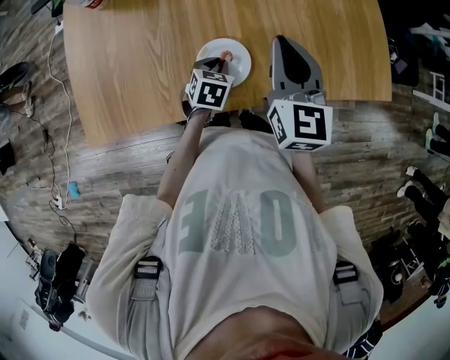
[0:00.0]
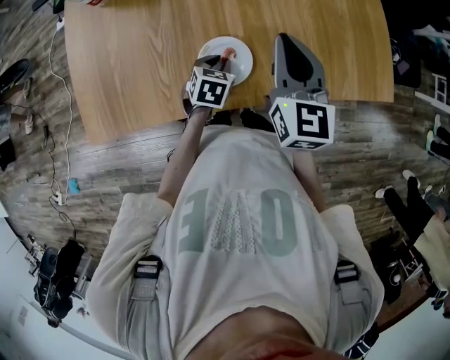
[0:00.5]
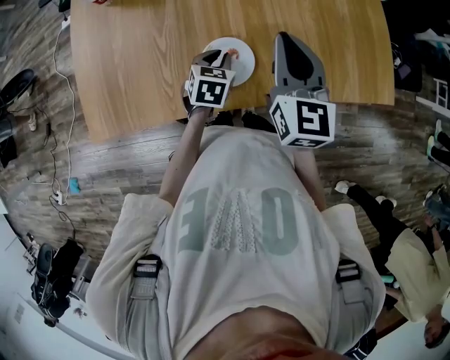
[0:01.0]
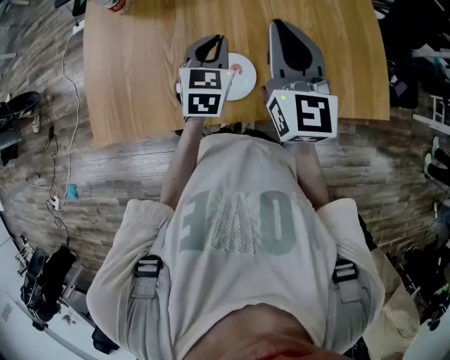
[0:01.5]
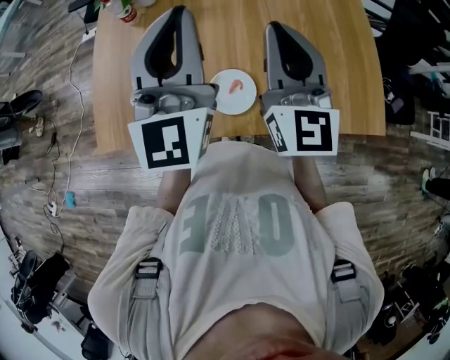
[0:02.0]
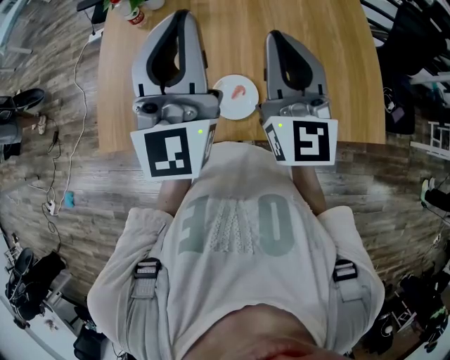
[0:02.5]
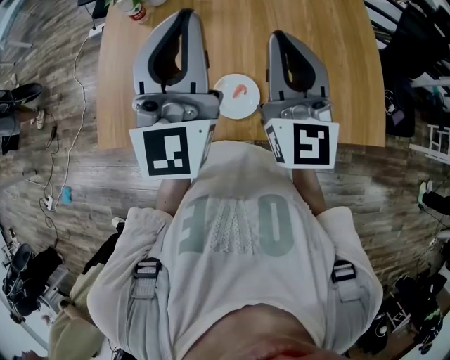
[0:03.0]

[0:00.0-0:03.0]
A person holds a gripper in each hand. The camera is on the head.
0:00.0 to 0:01.5: The left gripper heads upward, covering about 15 cm, and changes its angle by roughly 30 degrees, while the right gripper is displaced upward by approximately 5 cm.
0:01.5 to 0:03.0: The left gripper shifts approximately 25 cm upward, and tips its fingers upward by some 50 degrees. Meanwhile the right gripper heads upward, covering approximately 5 cm.

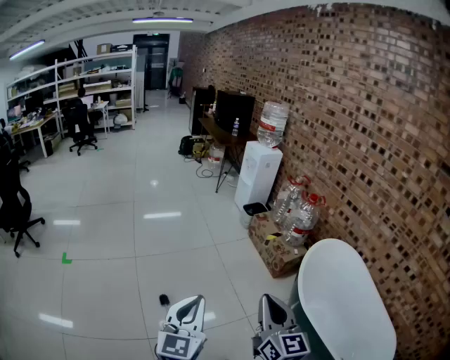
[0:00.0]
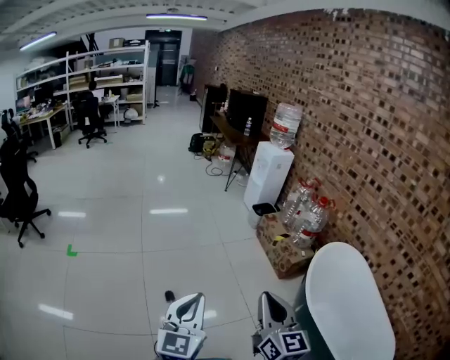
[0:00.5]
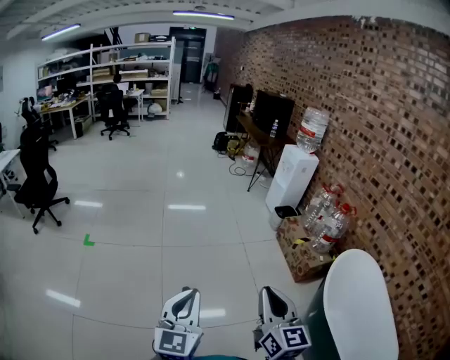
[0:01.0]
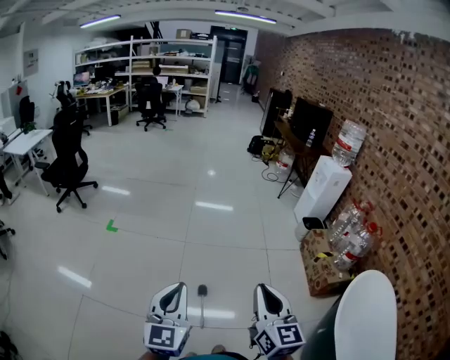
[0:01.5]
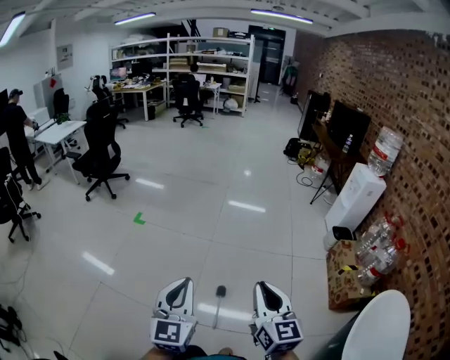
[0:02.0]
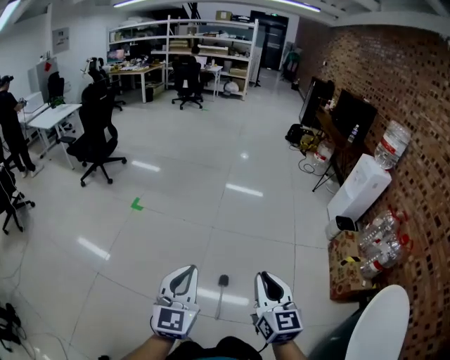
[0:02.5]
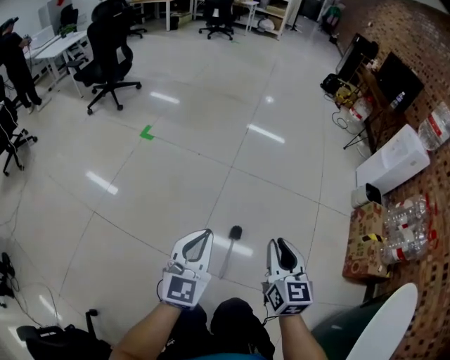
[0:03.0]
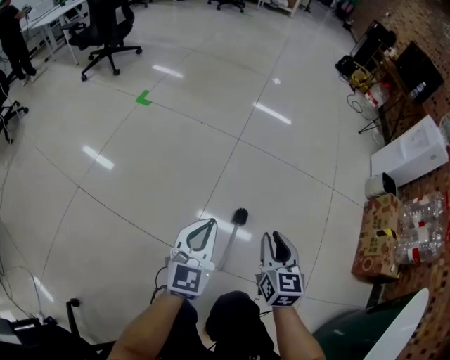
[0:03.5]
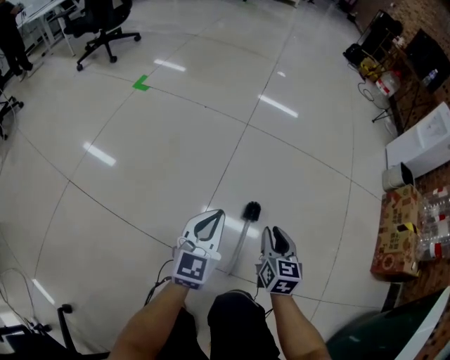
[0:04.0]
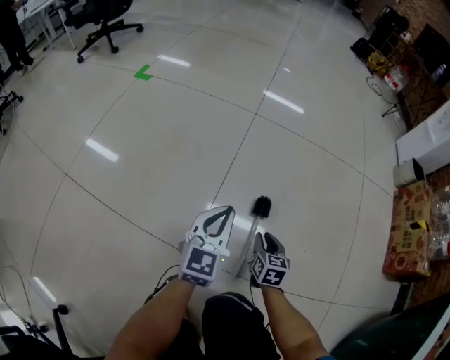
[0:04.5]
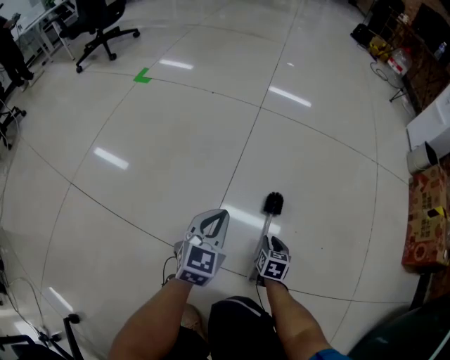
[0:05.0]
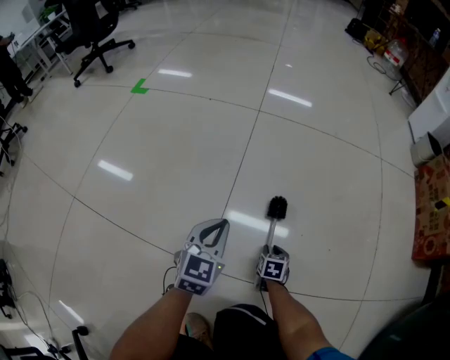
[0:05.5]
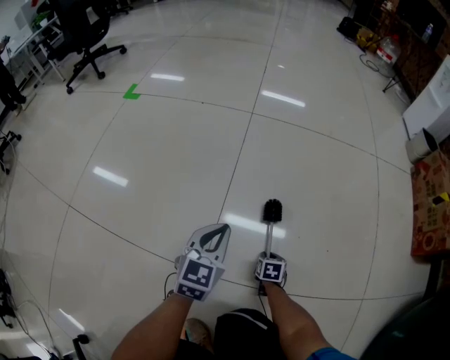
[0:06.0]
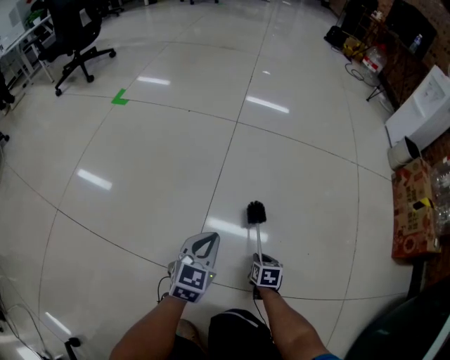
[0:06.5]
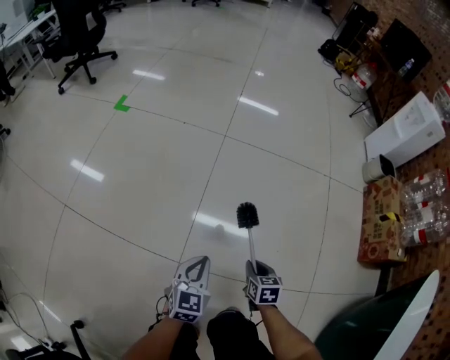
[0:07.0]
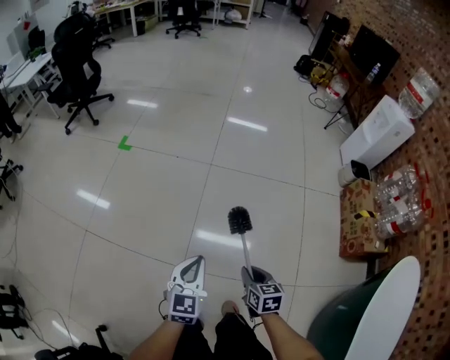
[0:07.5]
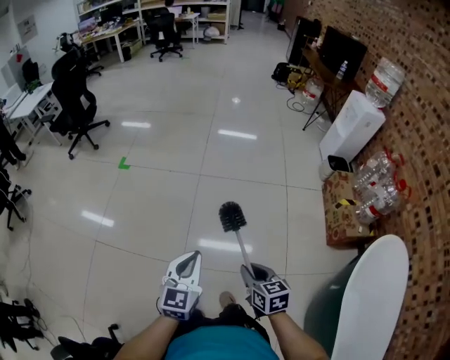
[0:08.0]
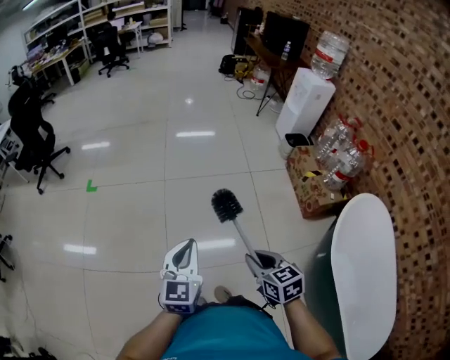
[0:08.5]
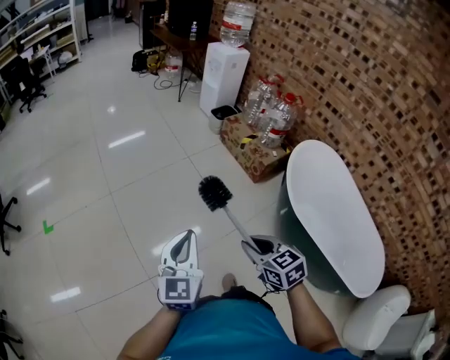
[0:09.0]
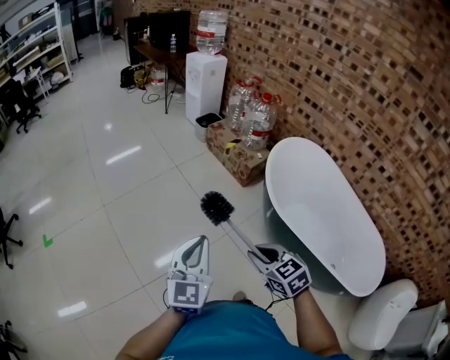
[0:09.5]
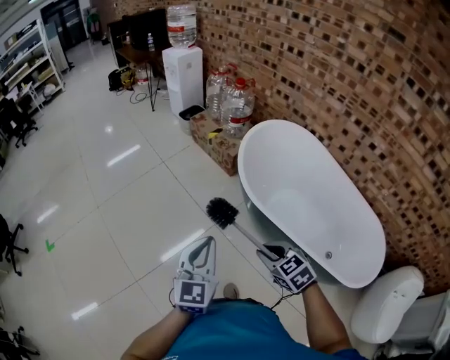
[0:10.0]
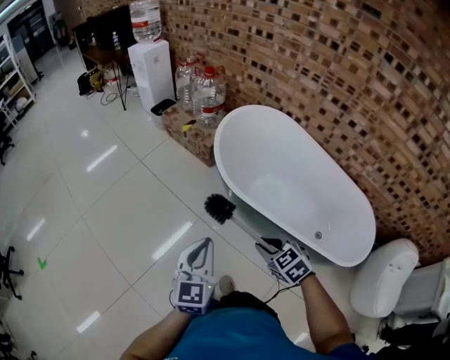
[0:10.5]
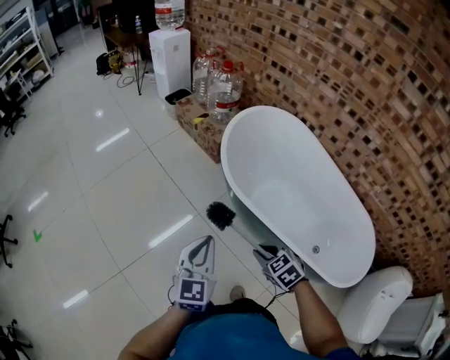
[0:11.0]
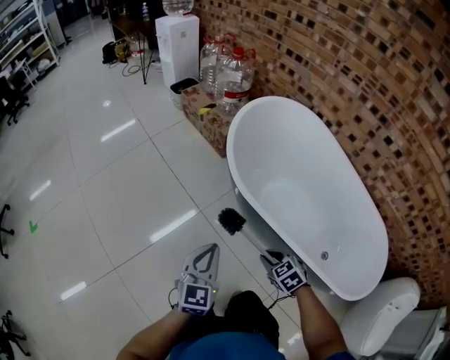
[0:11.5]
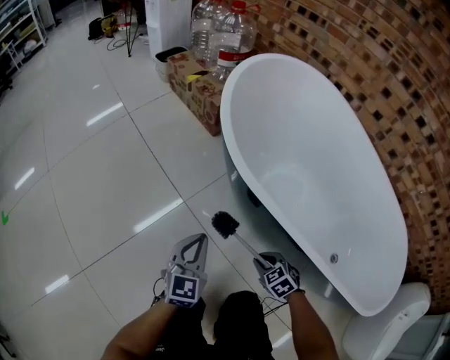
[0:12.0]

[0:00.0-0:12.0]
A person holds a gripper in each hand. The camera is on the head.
0:00.0 to 0:02.0: The right gripper moves approximately 30 cm, and turns by roughly 30 degrees, while the left gripper ends up about 30 cm from where it was, and turns by approximately 40 degrees.
0:02.0 to 0:04.0: Both grippers move downward, some 80 cm. The right gripper swivels roughly 30 degrees.
0:04.0 to 0:06.0: The right gripper heads downward, covering some 40 cm, and tips its fingers downward by roughly 40 degrees, while the left gripper is displaced downward by about 15 cm.
0:06.0 to 0:08.0: The two grippers go roughly 80 cm upward. The right gripper turns by roughly 30 degrees.
0:08.0 to 0:10.0: Both grippers are carried about 50 cm. The left gripper changes its angle by roughly 50 degrees; the right gripper changes its angle by approximately 30 degrees.
0:10.0 to 0:12.0: The grippers both shift downward by some 50 cm.

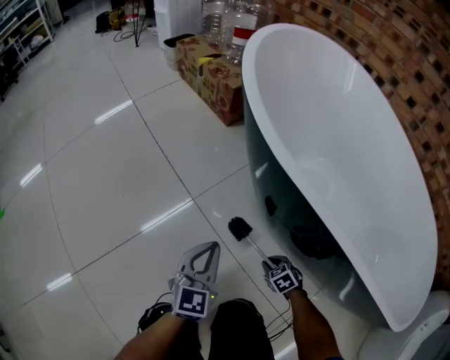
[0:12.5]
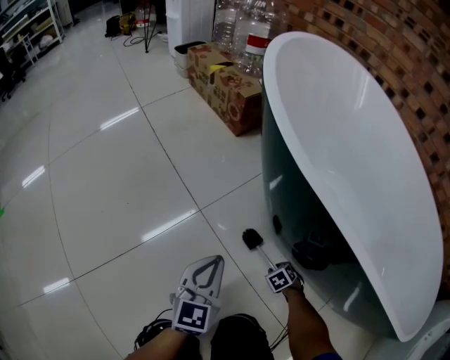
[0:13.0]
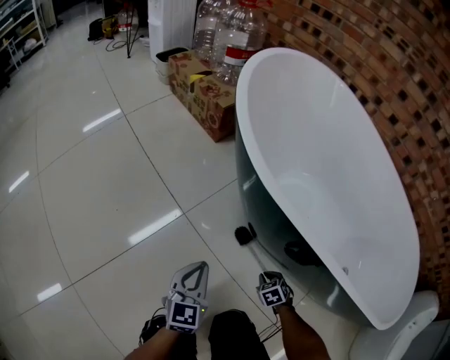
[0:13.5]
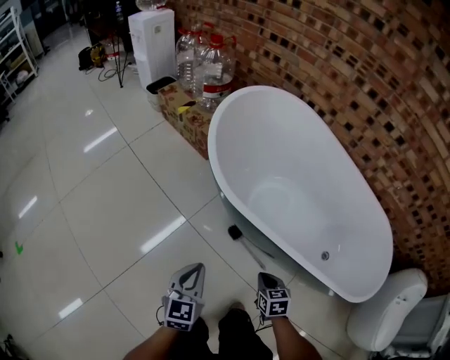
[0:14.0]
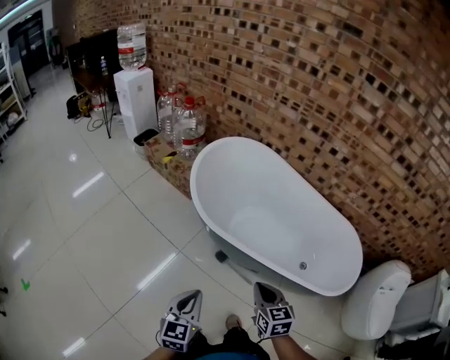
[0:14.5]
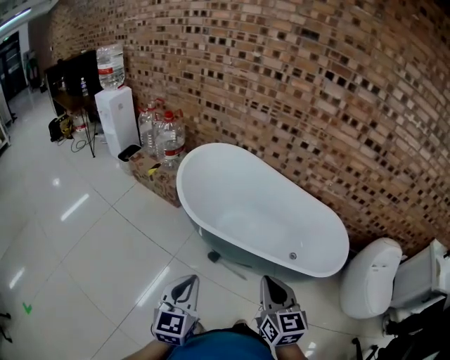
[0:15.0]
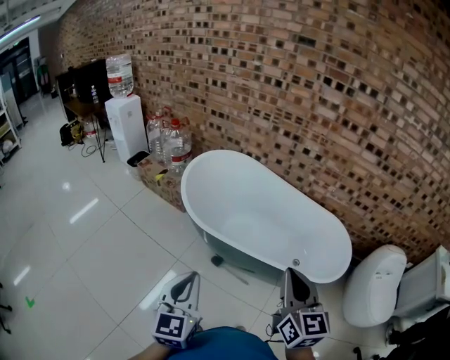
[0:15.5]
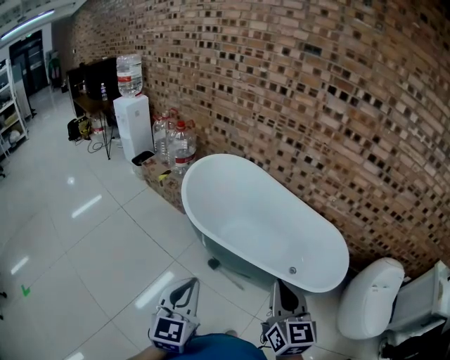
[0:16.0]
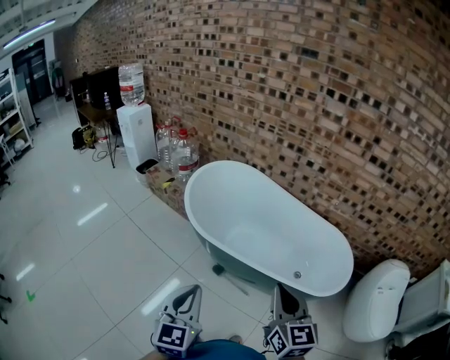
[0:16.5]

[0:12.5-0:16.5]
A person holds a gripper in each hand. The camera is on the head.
0:12.5 to 0:14.5: The two grippers go some 60 cm upward. The right gripper angles its fingers upward, by about 40 degrees.
0:14.5 to 0:16.5: Both grippers travel together upward, backward and to the right, about 25 cm. The right gripper changes its angle by approximately 30 degrees.

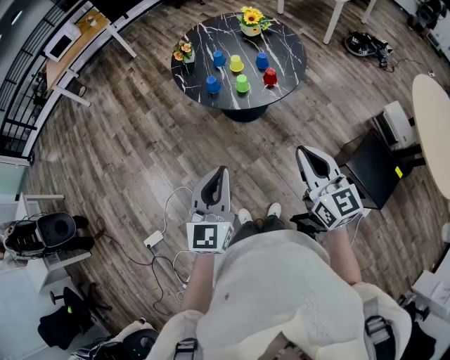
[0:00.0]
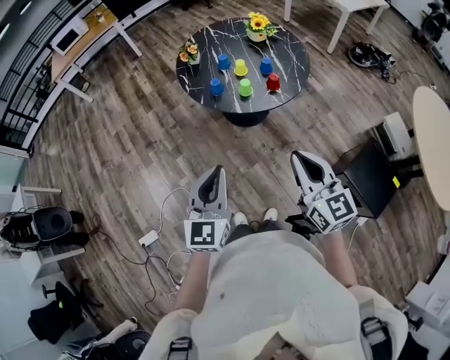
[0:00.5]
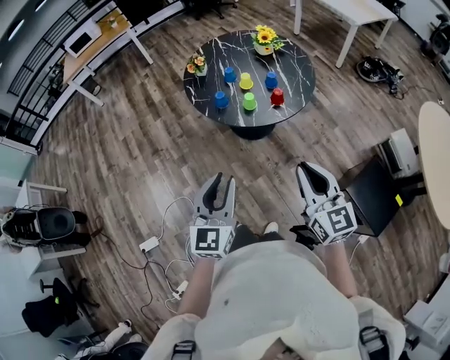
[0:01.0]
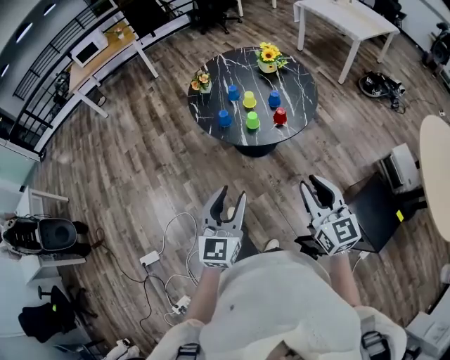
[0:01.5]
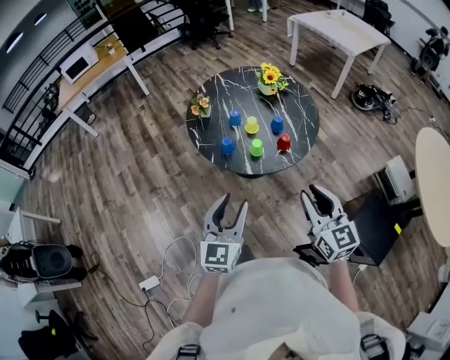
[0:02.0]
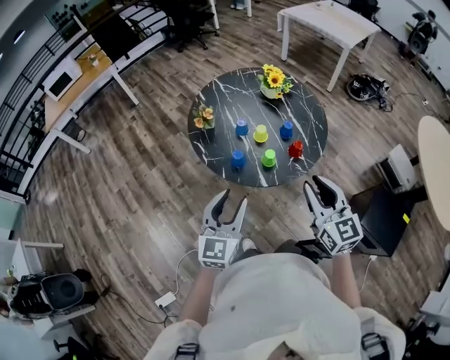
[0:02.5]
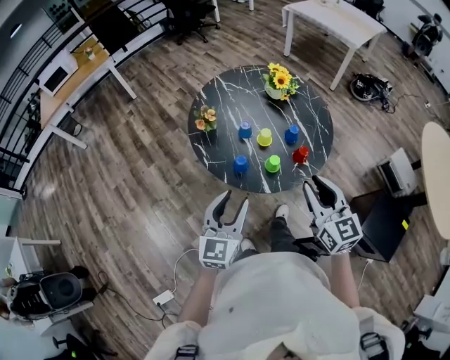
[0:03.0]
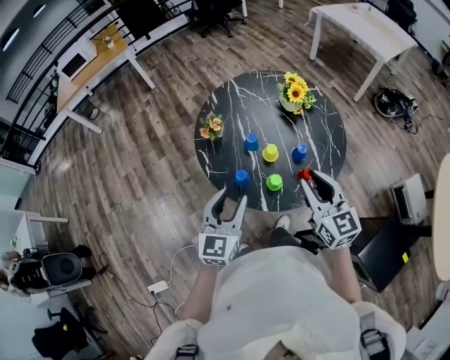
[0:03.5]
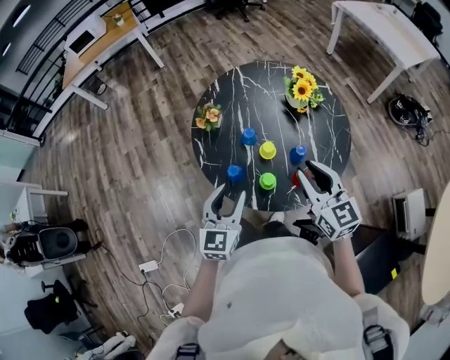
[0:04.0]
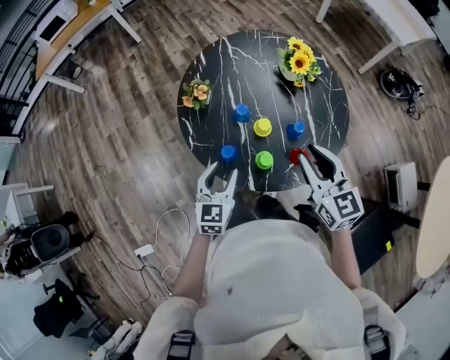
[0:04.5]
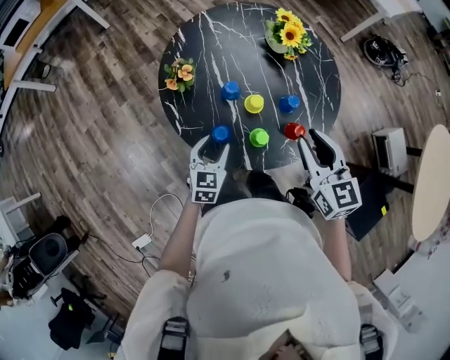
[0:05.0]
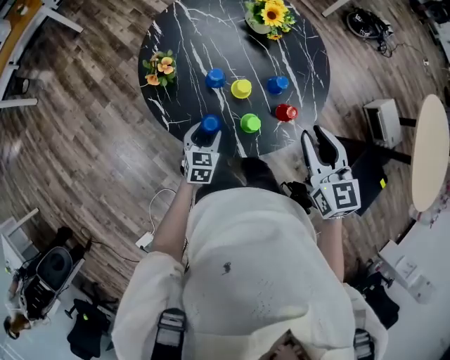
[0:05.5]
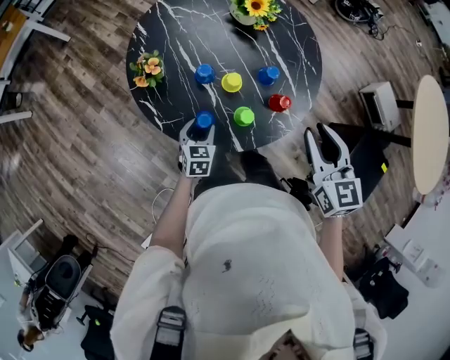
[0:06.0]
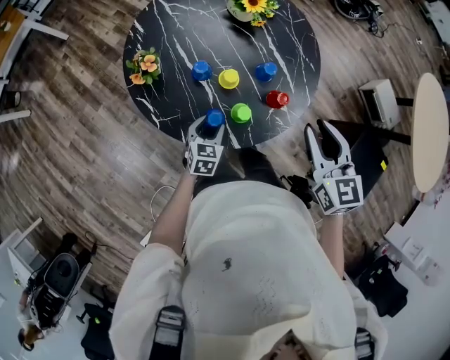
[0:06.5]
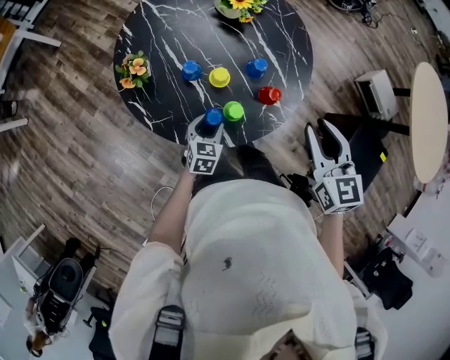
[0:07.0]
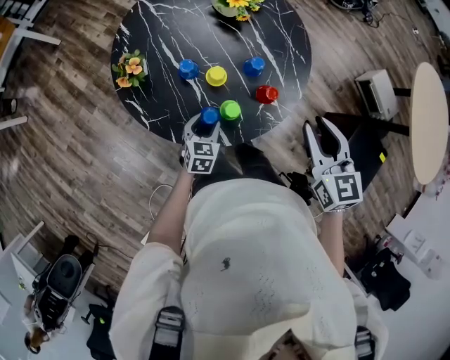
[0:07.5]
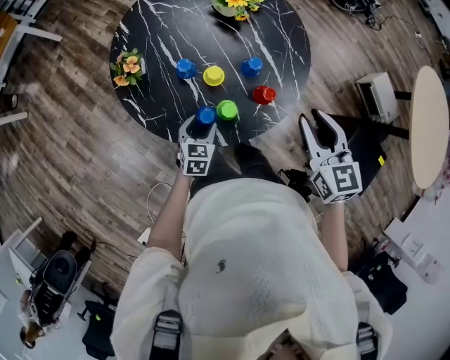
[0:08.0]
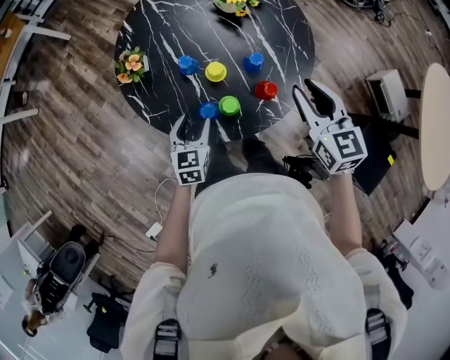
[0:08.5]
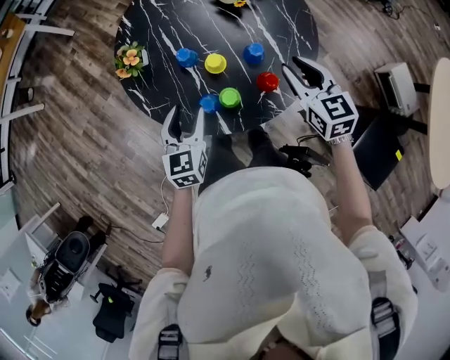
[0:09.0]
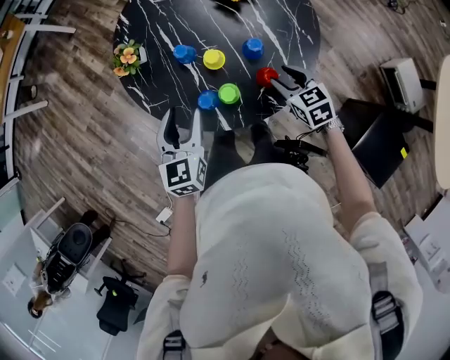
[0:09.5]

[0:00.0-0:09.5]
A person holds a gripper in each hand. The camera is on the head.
0:00.0 to 0:02.0: The two grippers go some 15 cm forward. The right gripper opens its fingers. The left gripper opens.
0:02.0 to 0:04.0: The two grippers go roughly 35 cm forward.
0:04.0 to 0:05.5: The right gripper travels downward by approximately 5 cm, and rotates about 30 degrees. The left gripper is displaced downward by about 25 cm, and swivels approximately 30 degrees.
0:05.5 to 0:07.5: The two grippers go some 10 cm to the right.
0:07.5 to 0:09.5: The right gripper heads downward, covering roughly 20 cm, and changes its angle by roughly 30 degrees. The left gripper goes some 15 cm upward, and rotates approximately 30 degrees.
